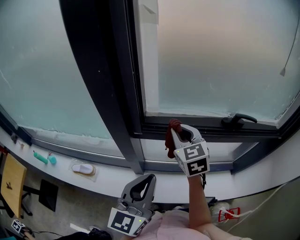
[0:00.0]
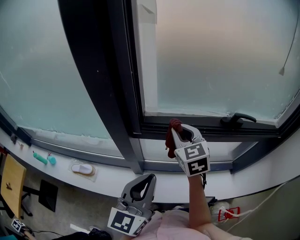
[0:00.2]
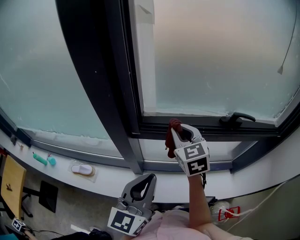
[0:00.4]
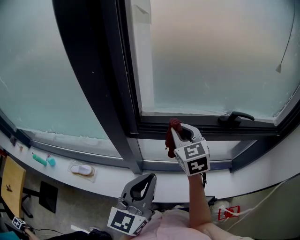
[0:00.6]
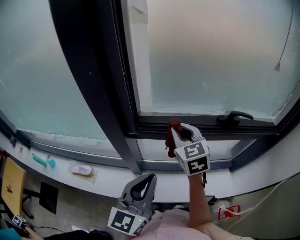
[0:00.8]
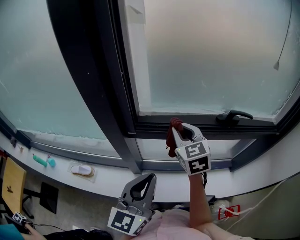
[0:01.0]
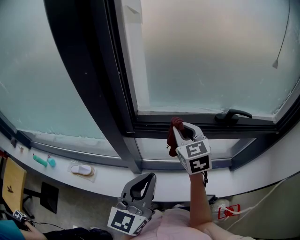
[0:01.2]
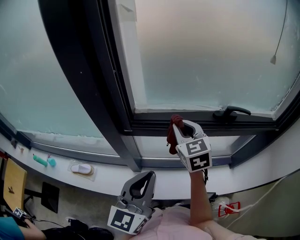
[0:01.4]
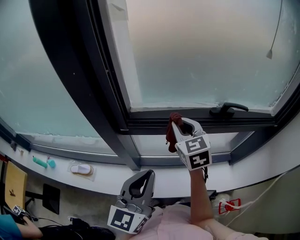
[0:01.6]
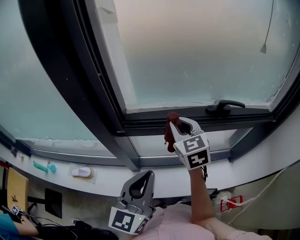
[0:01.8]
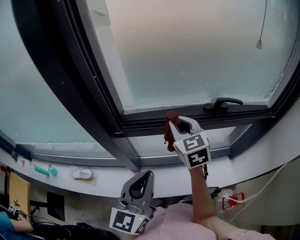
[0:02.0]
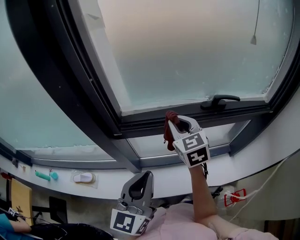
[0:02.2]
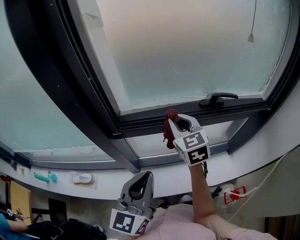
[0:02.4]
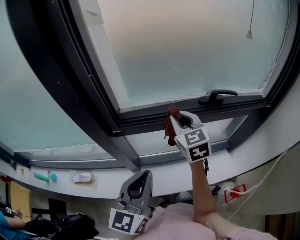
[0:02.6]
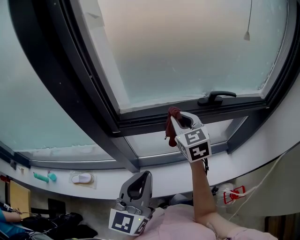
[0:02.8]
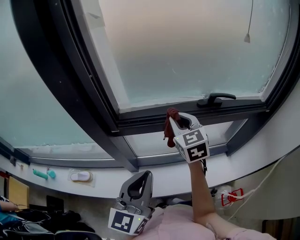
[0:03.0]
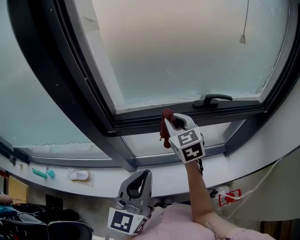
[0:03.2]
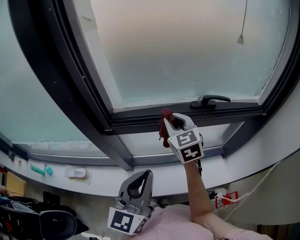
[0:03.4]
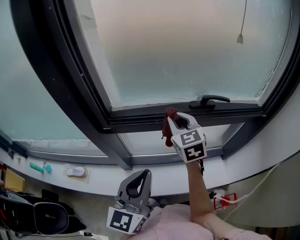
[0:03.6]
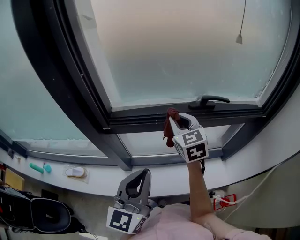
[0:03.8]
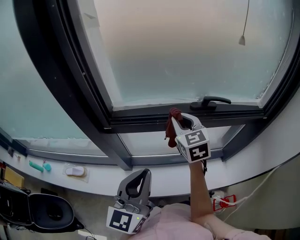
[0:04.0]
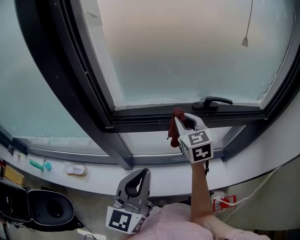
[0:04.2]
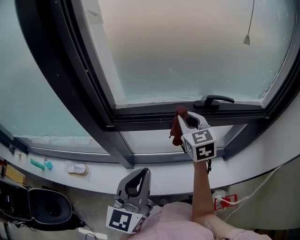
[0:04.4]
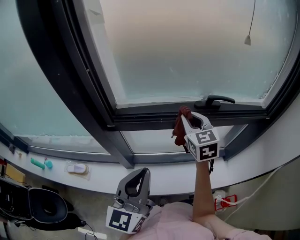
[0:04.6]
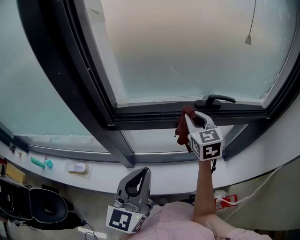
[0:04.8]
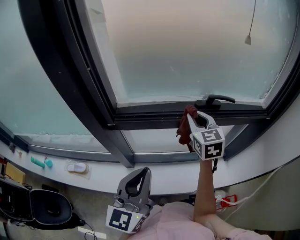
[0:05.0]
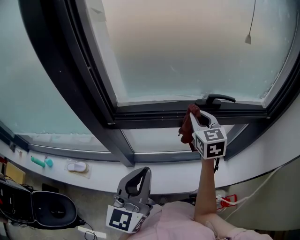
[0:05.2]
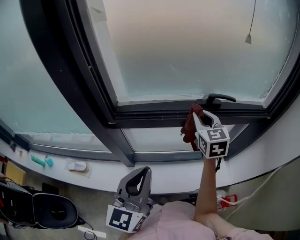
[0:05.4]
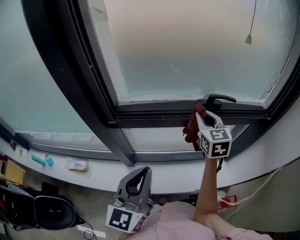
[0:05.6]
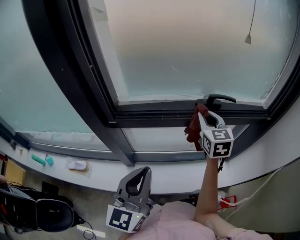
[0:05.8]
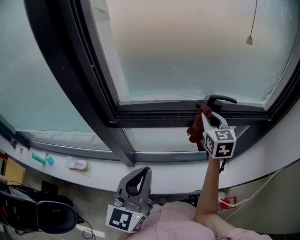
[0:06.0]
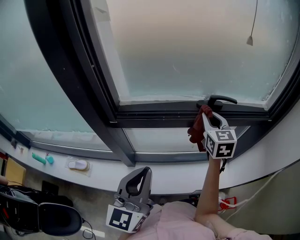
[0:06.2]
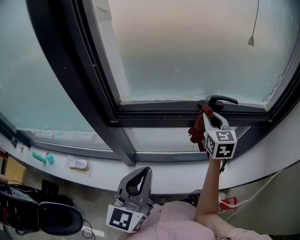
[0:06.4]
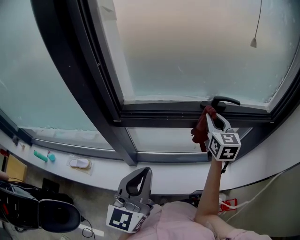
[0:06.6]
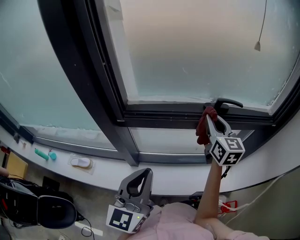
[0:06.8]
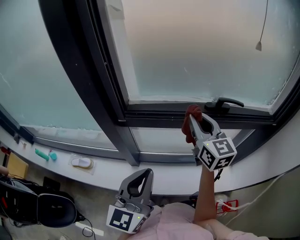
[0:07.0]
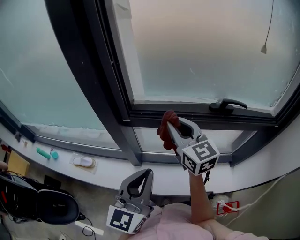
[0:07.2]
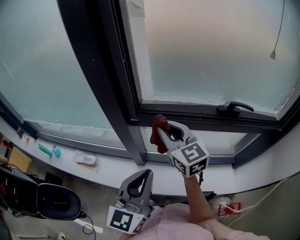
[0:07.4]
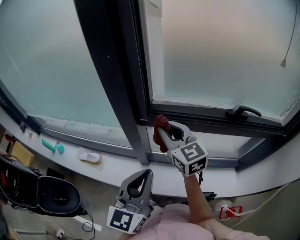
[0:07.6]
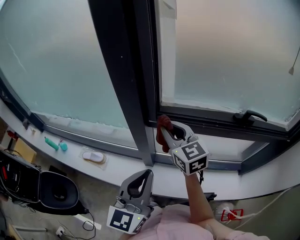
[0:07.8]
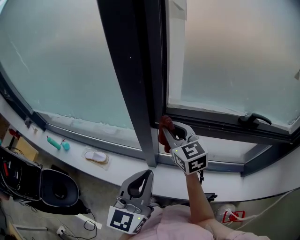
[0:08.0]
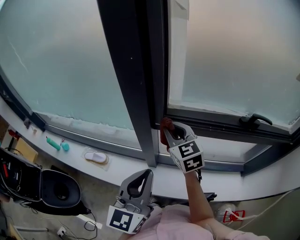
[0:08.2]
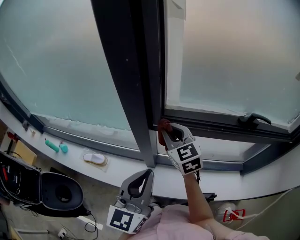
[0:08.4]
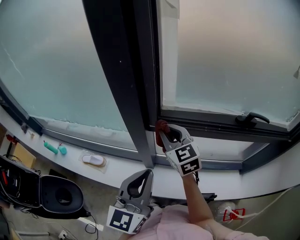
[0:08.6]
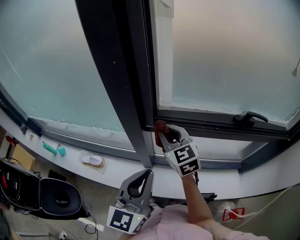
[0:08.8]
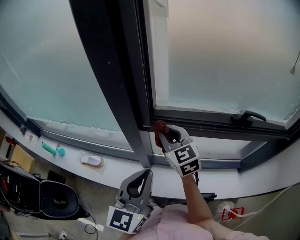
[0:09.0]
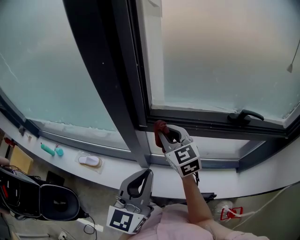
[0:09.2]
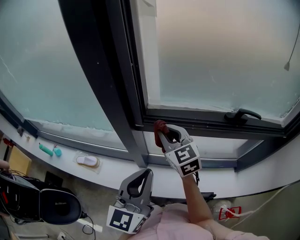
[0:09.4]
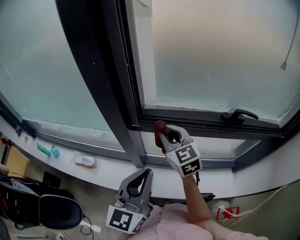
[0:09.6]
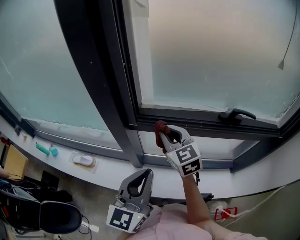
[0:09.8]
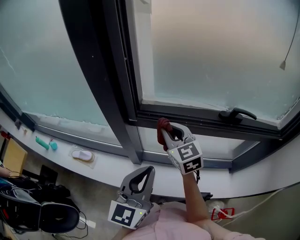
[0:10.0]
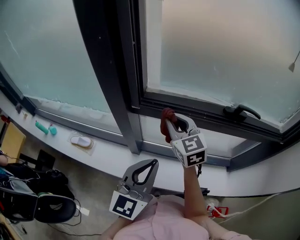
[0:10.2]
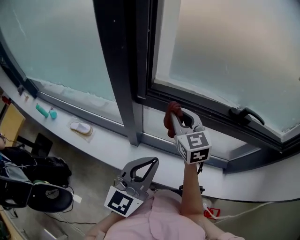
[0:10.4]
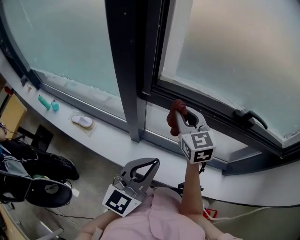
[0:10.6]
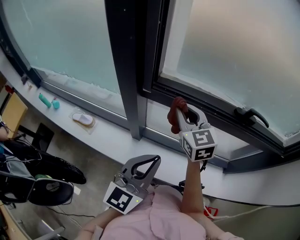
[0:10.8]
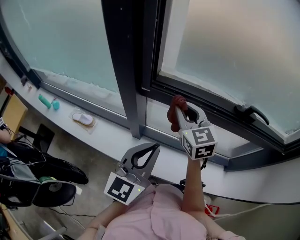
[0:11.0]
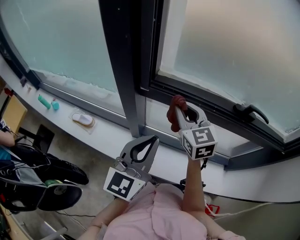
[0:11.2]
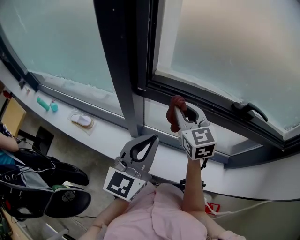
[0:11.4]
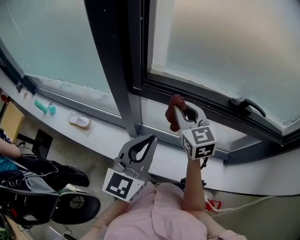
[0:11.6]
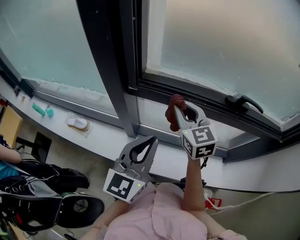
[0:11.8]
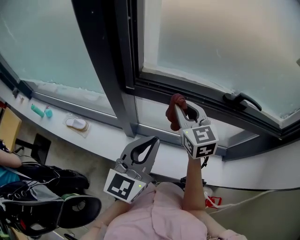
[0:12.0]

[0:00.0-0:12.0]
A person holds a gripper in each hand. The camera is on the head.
0:00.0 to 0:01.6: The right gripper shifts approximately 5 cm to the right.
0:01.6 to 0:03.0: The grippers make only small movements.
0:03.0 to 0:04.4: The right gripper is displaced to the right by approximately 5 cm.
0:04.4 to 0:06.0: The right gripper heads to the right, covering approximately 10 cm.
0:06.0 to 0:07.6: The left gripper heads to the left, covering some 10 cm. Meanwhile the right gripper is displaced to the left by roughly 30 cm, and swivels about 40 degrees.
0:07.6 to 0:09.0: The right gripper ends up approximately 5 cm from where it was.
0:09.0 to 0:10.4: Both grippers travel together to the right, some 10 cm.
0:10.4 to 0:12.0: The grippers move only a little.

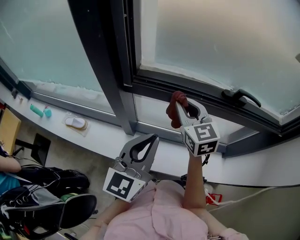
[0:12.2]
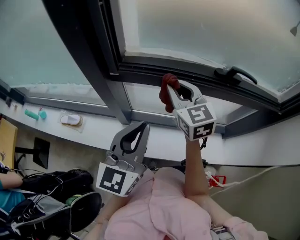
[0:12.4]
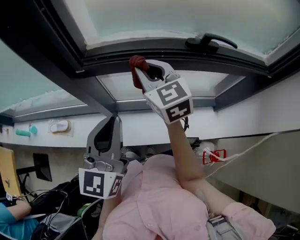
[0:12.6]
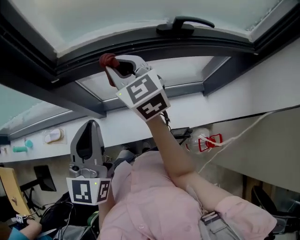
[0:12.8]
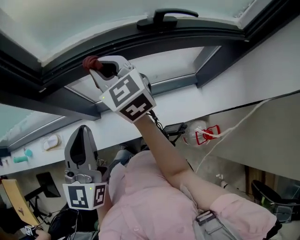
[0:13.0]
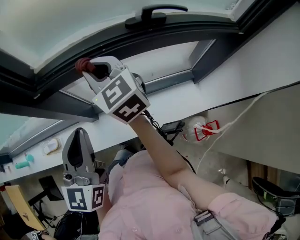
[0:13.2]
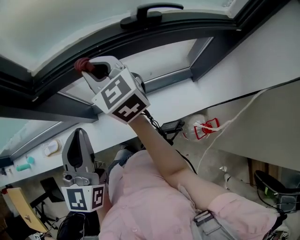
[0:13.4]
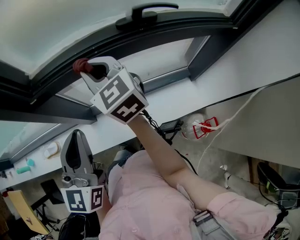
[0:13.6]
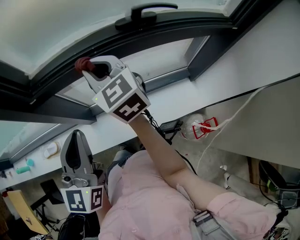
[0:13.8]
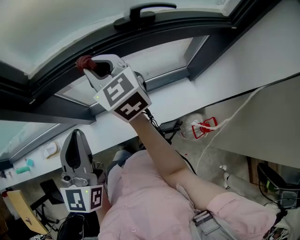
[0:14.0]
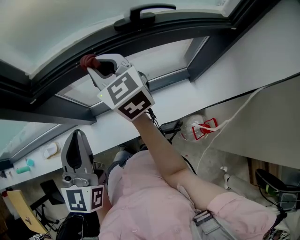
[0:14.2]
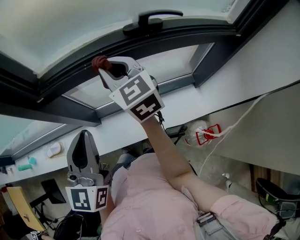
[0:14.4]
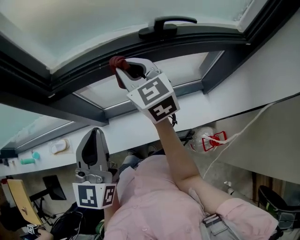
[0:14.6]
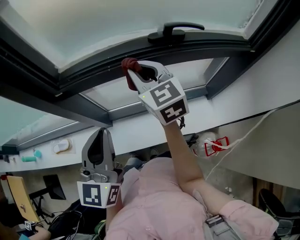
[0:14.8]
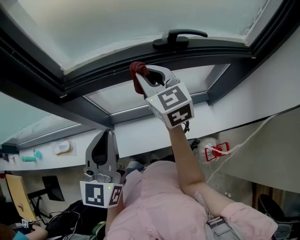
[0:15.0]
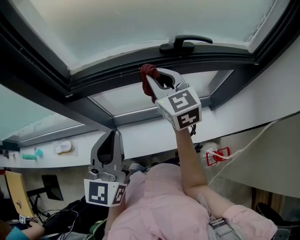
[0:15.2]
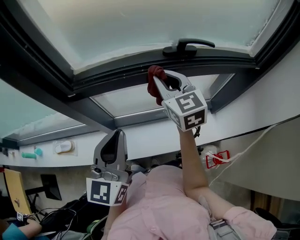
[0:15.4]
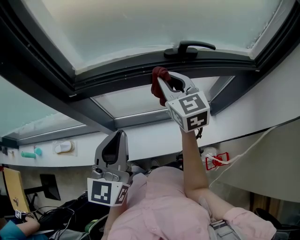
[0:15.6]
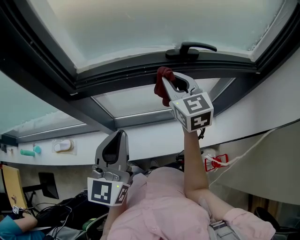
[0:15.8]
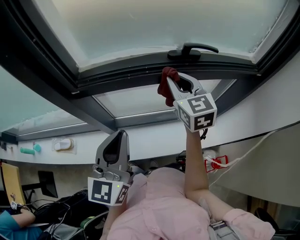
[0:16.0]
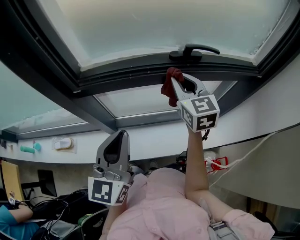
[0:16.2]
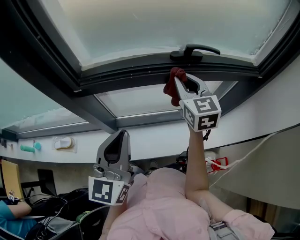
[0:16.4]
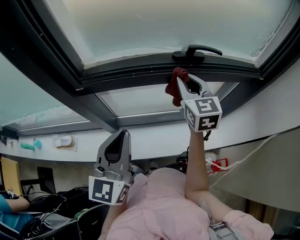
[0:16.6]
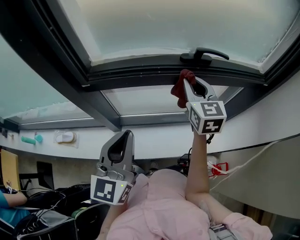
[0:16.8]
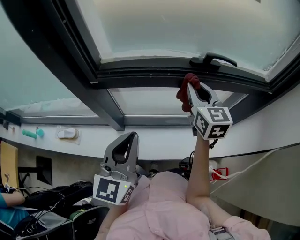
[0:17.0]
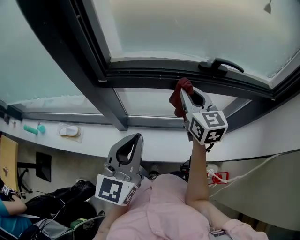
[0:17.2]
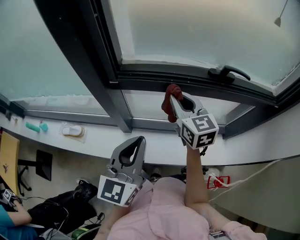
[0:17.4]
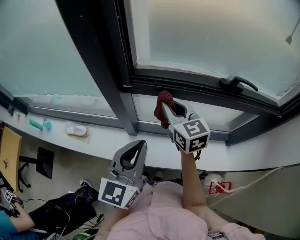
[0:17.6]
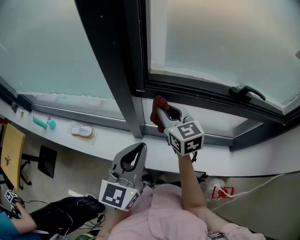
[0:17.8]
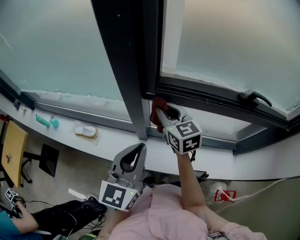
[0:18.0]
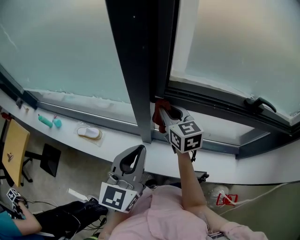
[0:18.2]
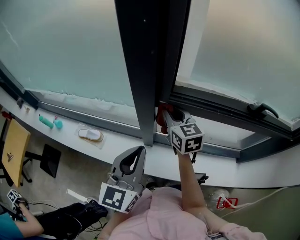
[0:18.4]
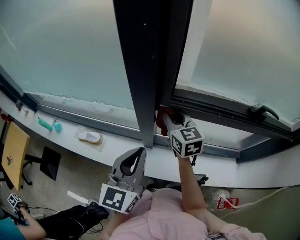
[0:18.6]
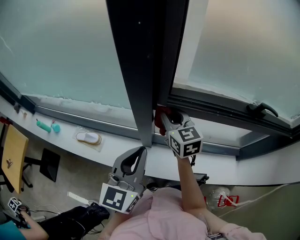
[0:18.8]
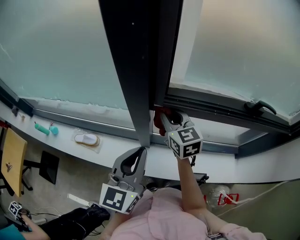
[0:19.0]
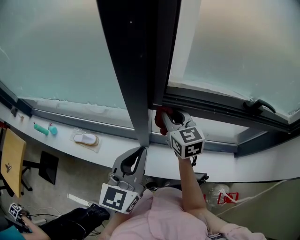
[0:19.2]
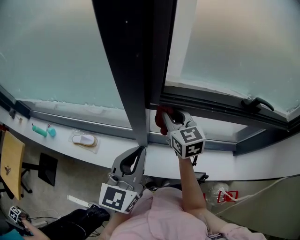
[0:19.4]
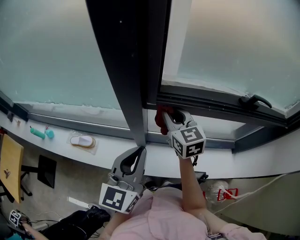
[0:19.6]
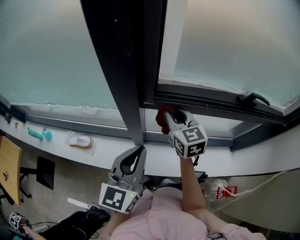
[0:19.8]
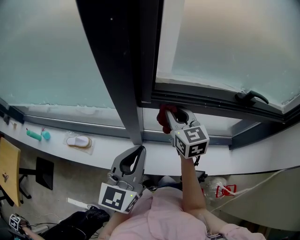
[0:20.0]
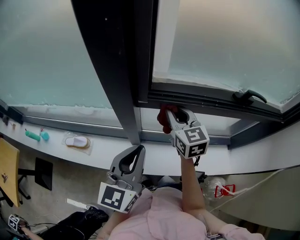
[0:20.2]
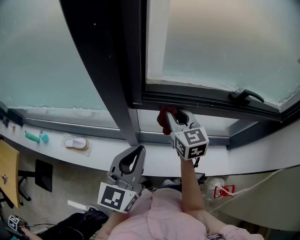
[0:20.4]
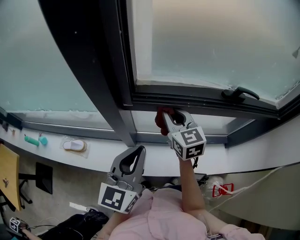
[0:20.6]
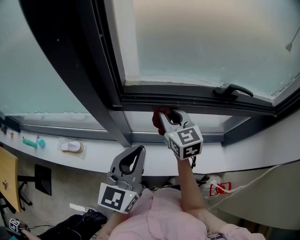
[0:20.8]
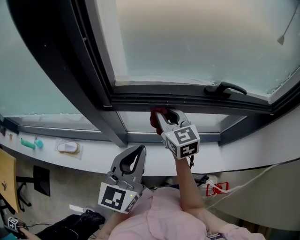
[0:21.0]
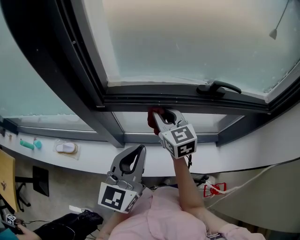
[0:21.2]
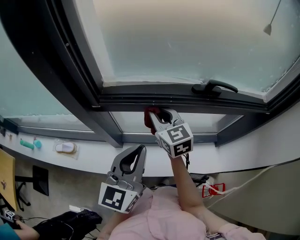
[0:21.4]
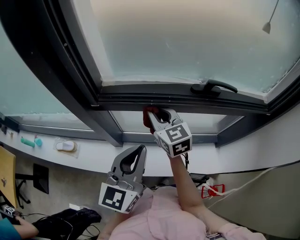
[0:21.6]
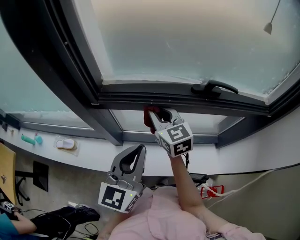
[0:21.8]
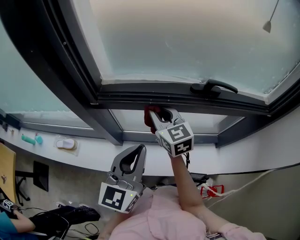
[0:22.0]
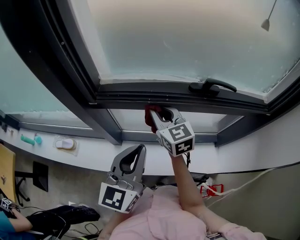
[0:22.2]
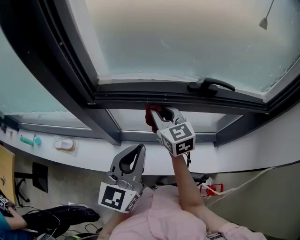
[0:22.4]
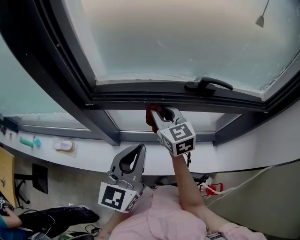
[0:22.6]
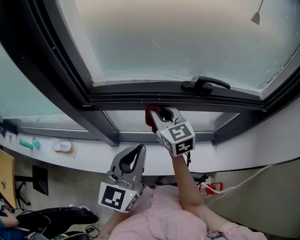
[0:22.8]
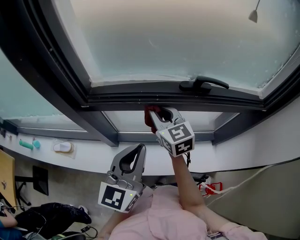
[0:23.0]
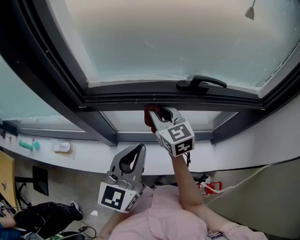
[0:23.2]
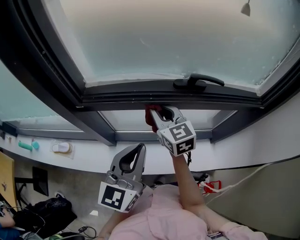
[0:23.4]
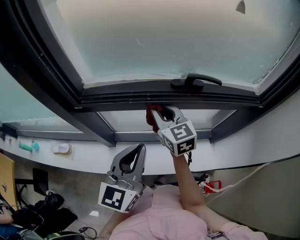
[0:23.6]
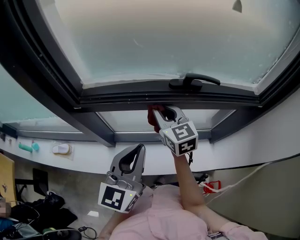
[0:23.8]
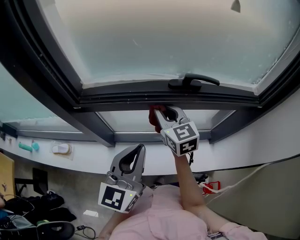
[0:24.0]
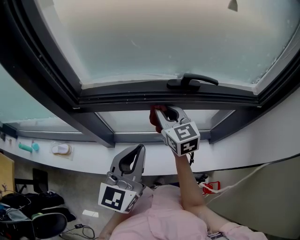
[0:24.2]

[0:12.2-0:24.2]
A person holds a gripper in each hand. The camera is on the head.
0:12.2 to 0:13.8: The grippers move only a little.
0:13.8 to 0:15.2: The right gripper shifts approximately 5 cm to the right.
0:15.2 to 0:16.6: The right gripper is displaced to the right by roughly 5 cm.
0:16.6 to 0:18.2: The left gripper goes about 20 cm to the left. The right gripper moves to the left, approximately 35 cm, and rotates roughly 30 degrees.
0:18.2 to 0:19.8: The right gripper is displaced to the right by approximately 5 cm.
0:19.8 to 0:21.2: Both grippers travel together to the right, about 15 cm.
0:21.2 to 0:22.6: There are only small adjustments of the grippers.
0:22.6 to 0:24.2: The two grippers go roughly 5 cm to the right.
